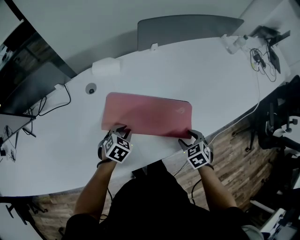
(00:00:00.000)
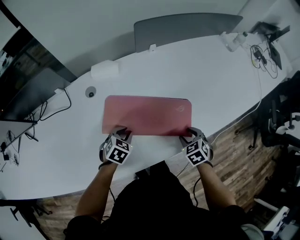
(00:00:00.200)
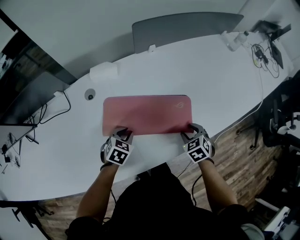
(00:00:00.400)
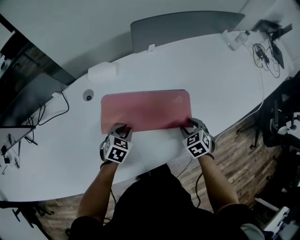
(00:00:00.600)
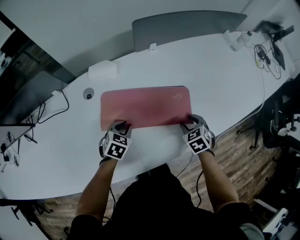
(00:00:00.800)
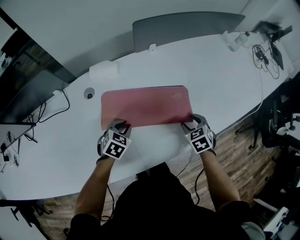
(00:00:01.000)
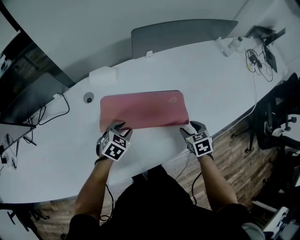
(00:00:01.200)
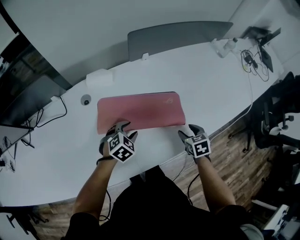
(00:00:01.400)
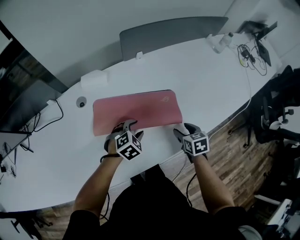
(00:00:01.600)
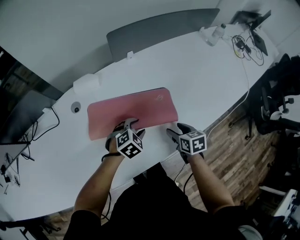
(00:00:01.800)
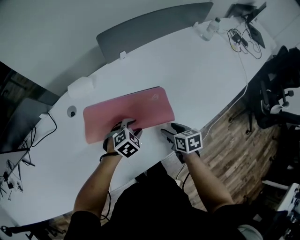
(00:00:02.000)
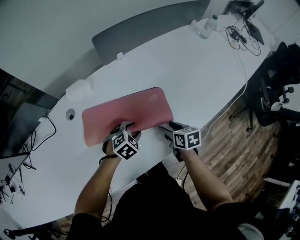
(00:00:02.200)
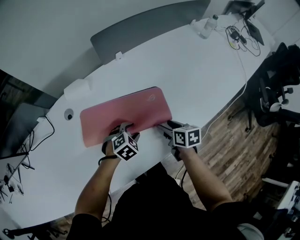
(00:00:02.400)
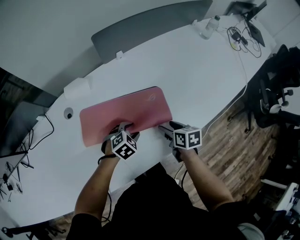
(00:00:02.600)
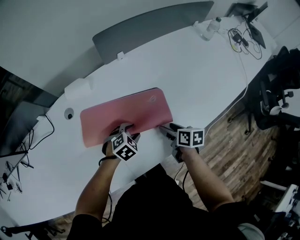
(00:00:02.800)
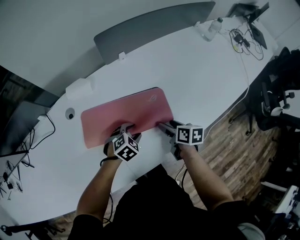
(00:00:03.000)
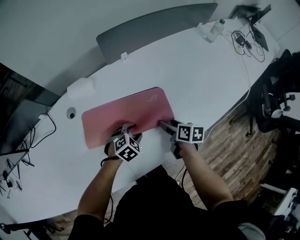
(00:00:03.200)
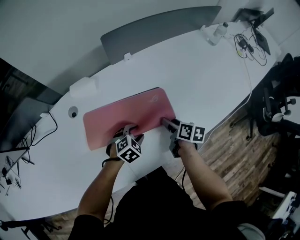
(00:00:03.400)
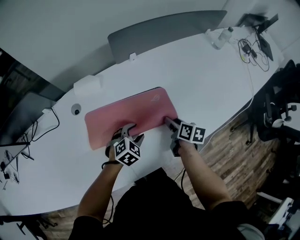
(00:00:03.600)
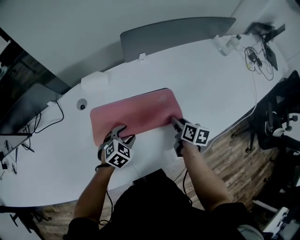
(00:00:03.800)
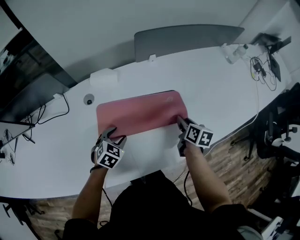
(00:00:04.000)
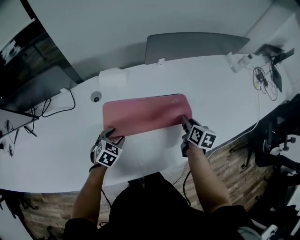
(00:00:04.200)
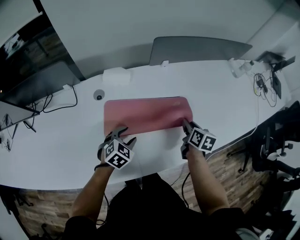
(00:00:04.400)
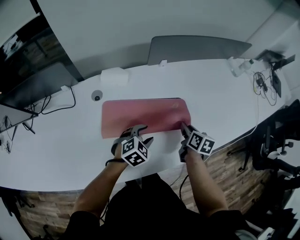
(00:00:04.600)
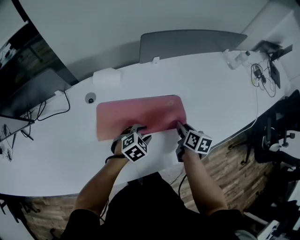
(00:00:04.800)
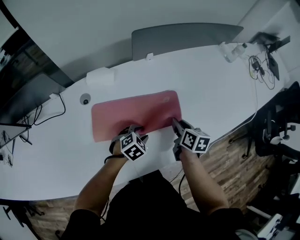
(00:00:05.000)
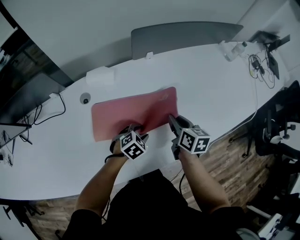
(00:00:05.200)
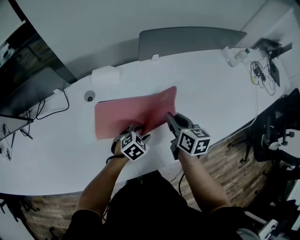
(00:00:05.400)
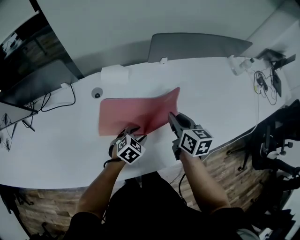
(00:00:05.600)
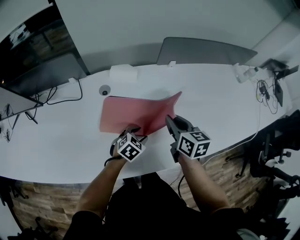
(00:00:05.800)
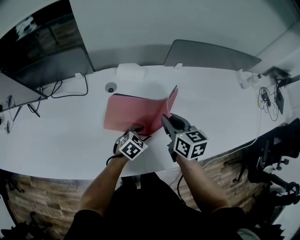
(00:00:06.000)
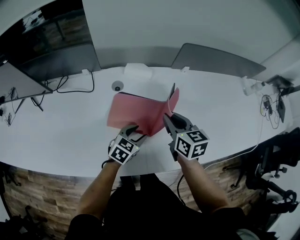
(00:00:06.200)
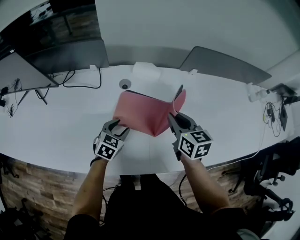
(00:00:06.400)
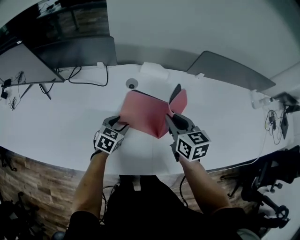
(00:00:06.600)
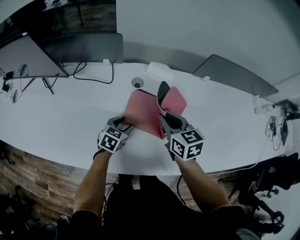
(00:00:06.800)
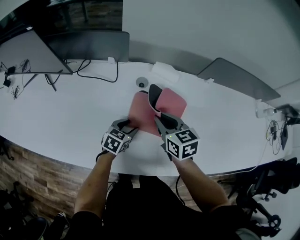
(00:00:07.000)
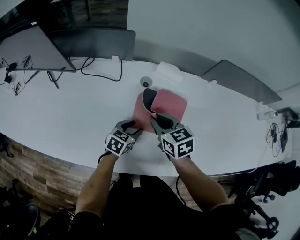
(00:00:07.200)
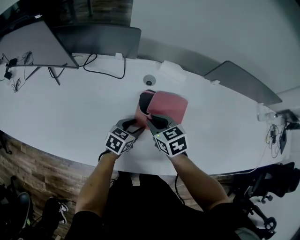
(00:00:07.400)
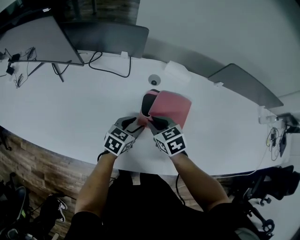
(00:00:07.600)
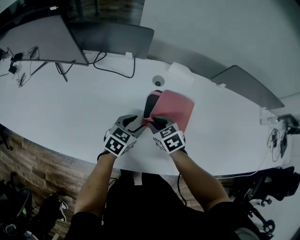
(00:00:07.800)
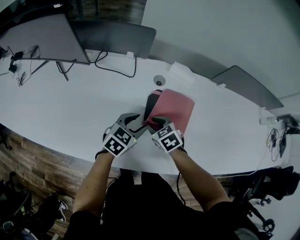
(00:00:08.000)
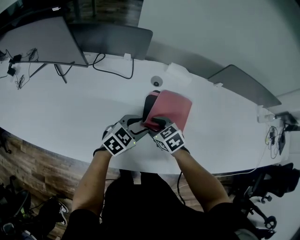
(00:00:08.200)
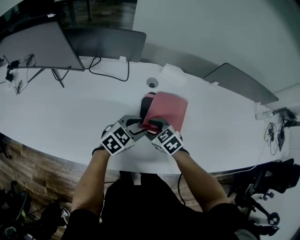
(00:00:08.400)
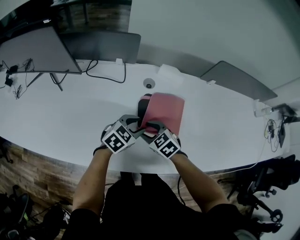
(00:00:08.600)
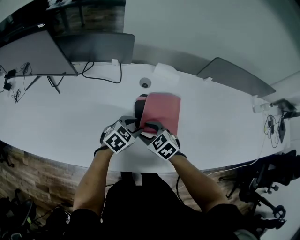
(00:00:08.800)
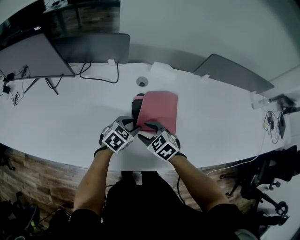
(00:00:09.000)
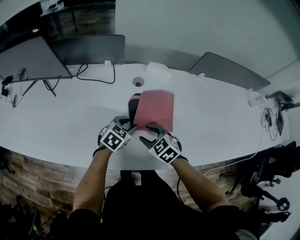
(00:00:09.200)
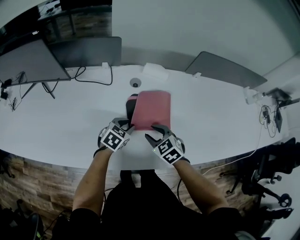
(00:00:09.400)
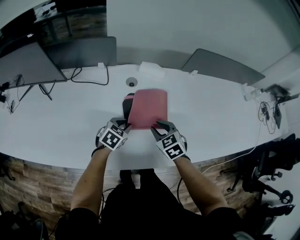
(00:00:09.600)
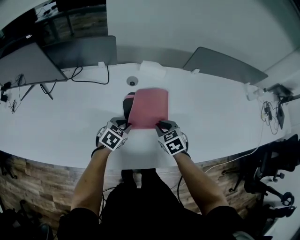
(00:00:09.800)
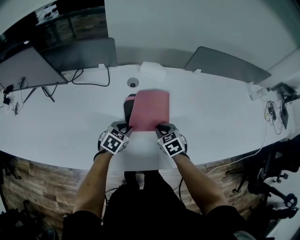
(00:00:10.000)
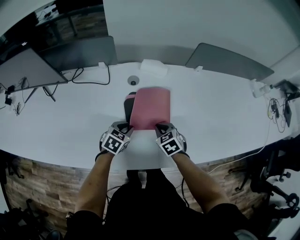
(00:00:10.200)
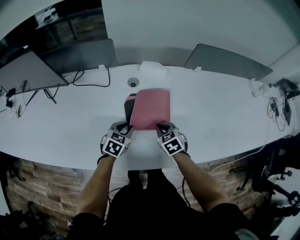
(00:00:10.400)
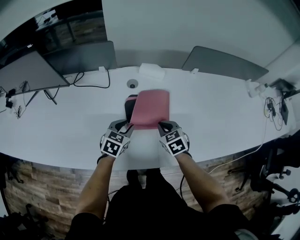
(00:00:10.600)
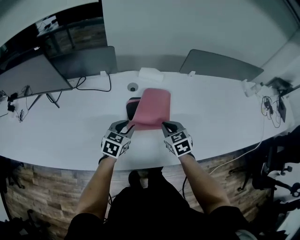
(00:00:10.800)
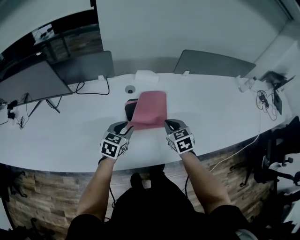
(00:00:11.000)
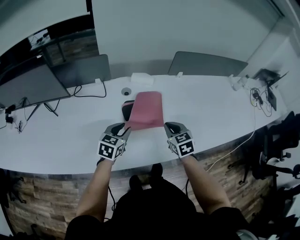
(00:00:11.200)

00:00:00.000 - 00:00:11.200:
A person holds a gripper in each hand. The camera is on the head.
00:00:00.000 - 00:00:01.600: The right gripper shifts some 5 cm forward, and turns by approximately 30 degrees, while the left gripper is displaced to the right and forward by roughly 10 cm, rotates some 20 degrees, and opens.
00:00:01.600 - 00:00:03.200: The left gripper ends up roughly 5 cm from where it was. The right gripper moves about 5 cm, and turns by roughly 40 degrees.
00:00:03.200 - 00:00:04.800: The right gripper closes up; the left gripper reaches some 20 cm to the left, then returns.
00:00:04.800 - 00:00:06.400: The left gripper shifts by some 25 cm, and swivels some 40 degrees. The right gripper ends up roughly 25 cm from where it was, and changes its angle by some 40 degrees.
00:00:06.400 - 00:00:08.000: The right gripper shifts about 25 cm to the left and downward, and rotates roughly 50 degrees; the left gripper is displaced to the left by roughly 5 cm.
00:00:08.000 - 00:00:09.600: The left gripper ends up about 5 cm from where it was, and closes. The right gripper is displaced to the right by roughly 10 cm.
00:00:09.600 - 00:00:11.200: The right gripper goes about 10 cm upward and to the right, swivels approximately 20 degrees, and closes its fingers; the left gripper goes approximately 10 cm upward.

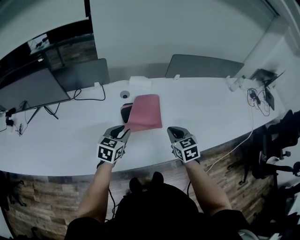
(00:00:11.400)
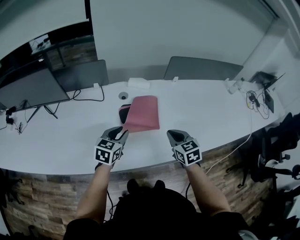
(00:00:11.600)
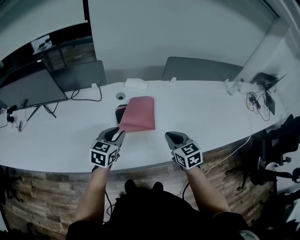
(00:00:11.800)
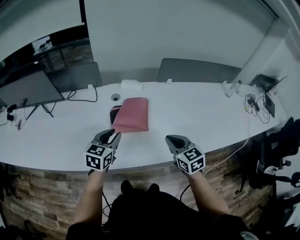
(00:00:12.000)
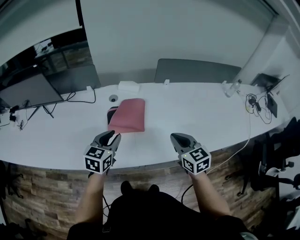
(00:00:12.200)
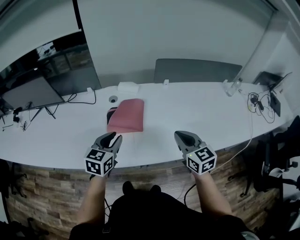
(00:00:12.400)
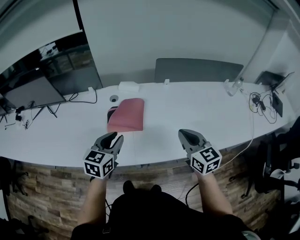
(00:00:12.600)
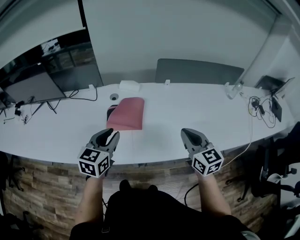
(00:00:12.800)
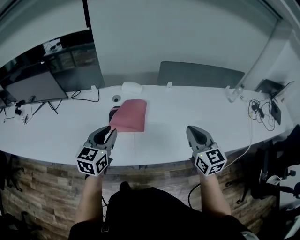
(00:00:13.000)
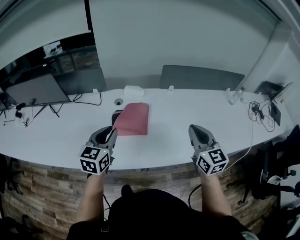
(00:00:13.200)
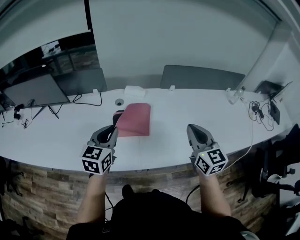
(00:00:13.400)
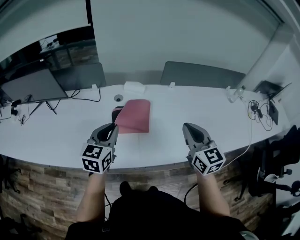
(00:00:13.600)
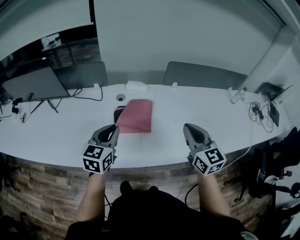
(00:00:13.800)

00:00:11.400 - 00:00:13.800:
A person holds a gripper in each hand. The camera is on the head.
00:00:11.400 - 00:00:12.600: The right gripper heads to the right and upward, covering approximately 20 cm, and swivels about 20 degrees. Meanwhile the left gripper shifts about 20 cm to the right, upward and backward.
00:00:12.600 - 00:00:13.800: Both grippers move to the left, approximately 5 cm.

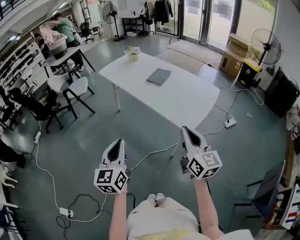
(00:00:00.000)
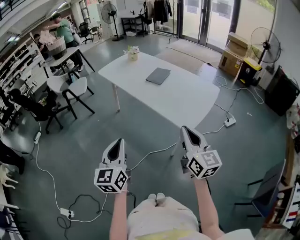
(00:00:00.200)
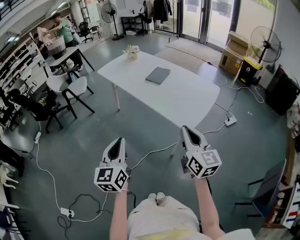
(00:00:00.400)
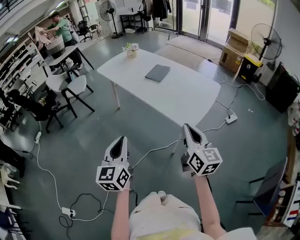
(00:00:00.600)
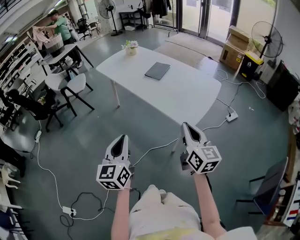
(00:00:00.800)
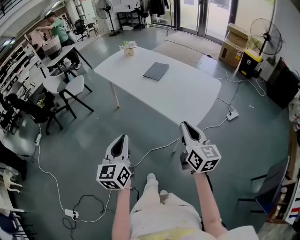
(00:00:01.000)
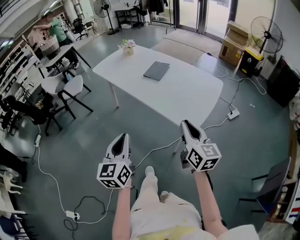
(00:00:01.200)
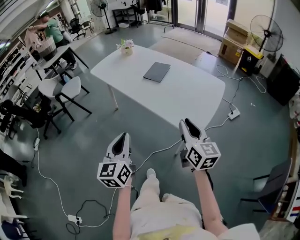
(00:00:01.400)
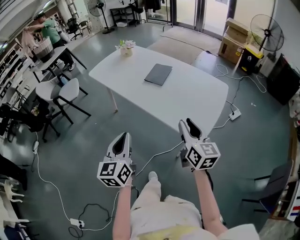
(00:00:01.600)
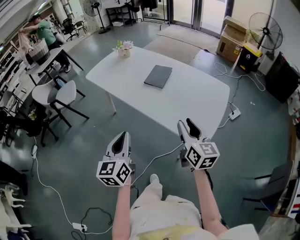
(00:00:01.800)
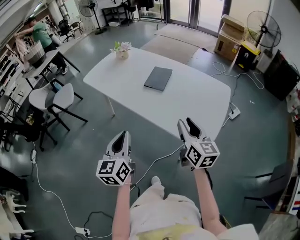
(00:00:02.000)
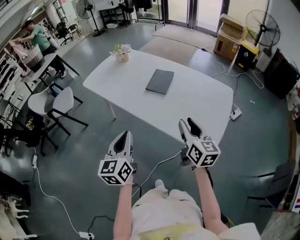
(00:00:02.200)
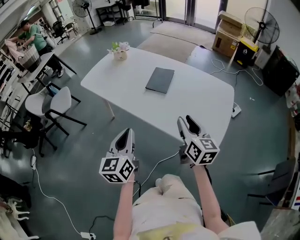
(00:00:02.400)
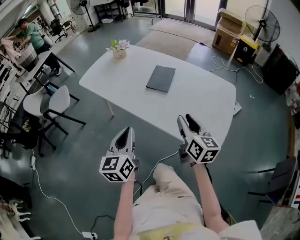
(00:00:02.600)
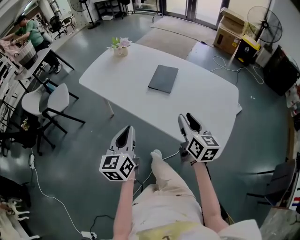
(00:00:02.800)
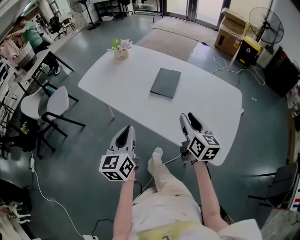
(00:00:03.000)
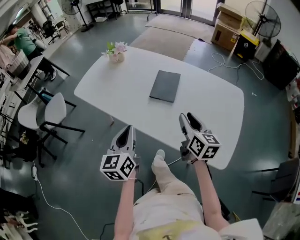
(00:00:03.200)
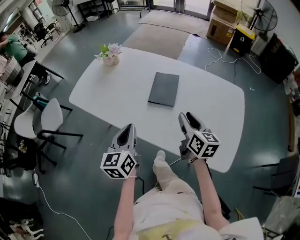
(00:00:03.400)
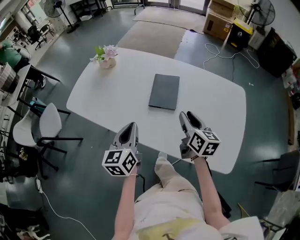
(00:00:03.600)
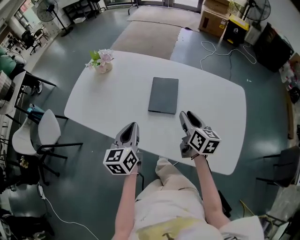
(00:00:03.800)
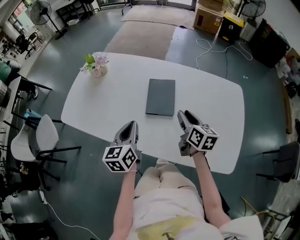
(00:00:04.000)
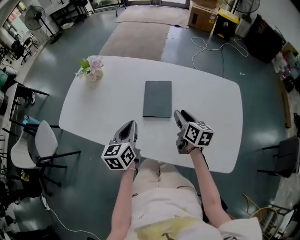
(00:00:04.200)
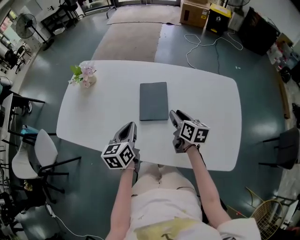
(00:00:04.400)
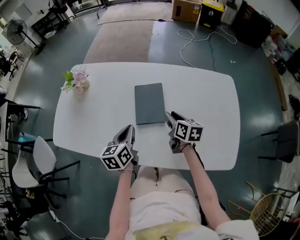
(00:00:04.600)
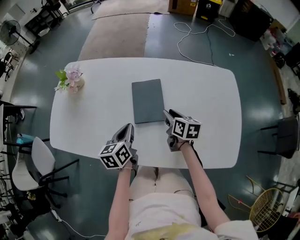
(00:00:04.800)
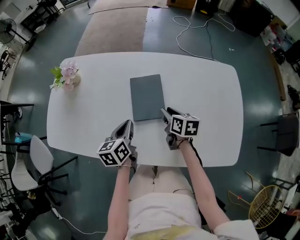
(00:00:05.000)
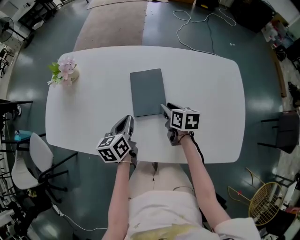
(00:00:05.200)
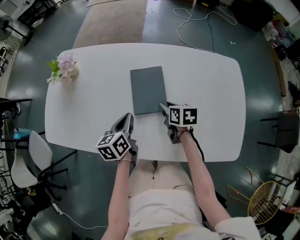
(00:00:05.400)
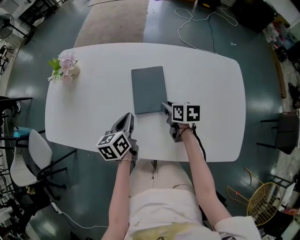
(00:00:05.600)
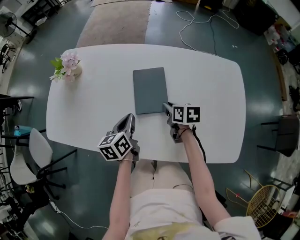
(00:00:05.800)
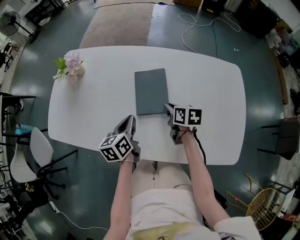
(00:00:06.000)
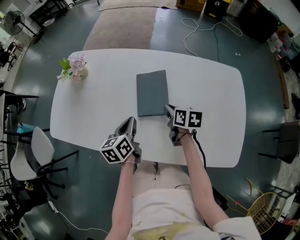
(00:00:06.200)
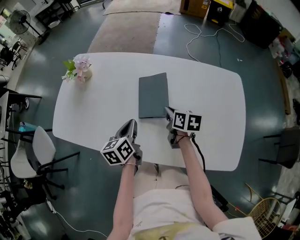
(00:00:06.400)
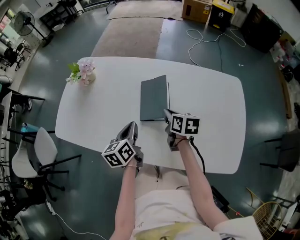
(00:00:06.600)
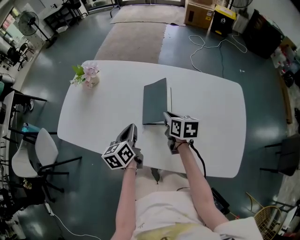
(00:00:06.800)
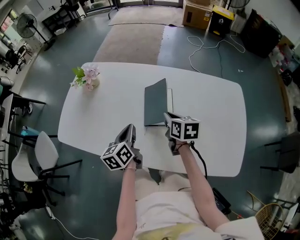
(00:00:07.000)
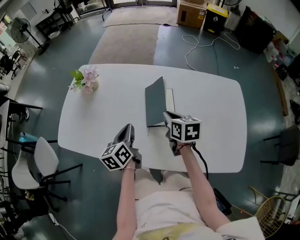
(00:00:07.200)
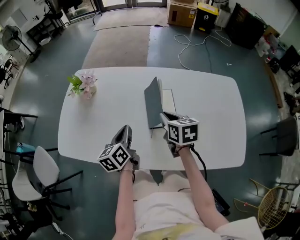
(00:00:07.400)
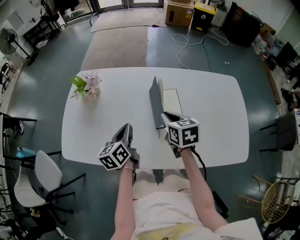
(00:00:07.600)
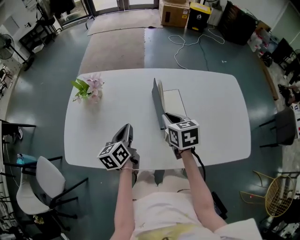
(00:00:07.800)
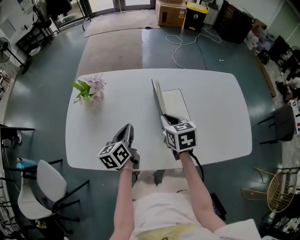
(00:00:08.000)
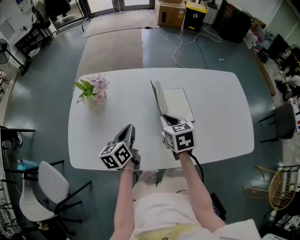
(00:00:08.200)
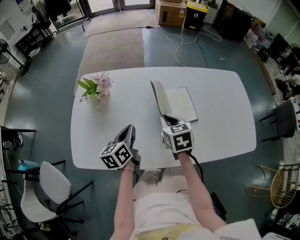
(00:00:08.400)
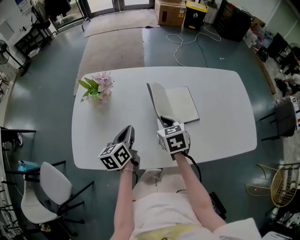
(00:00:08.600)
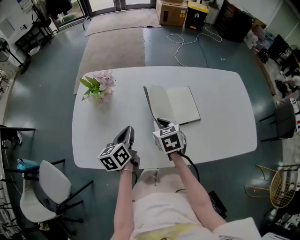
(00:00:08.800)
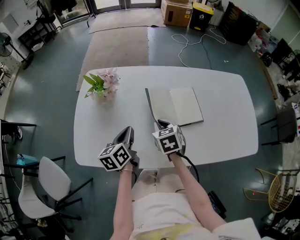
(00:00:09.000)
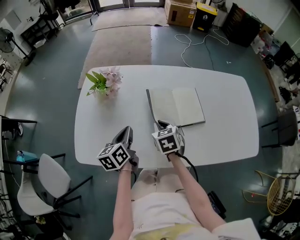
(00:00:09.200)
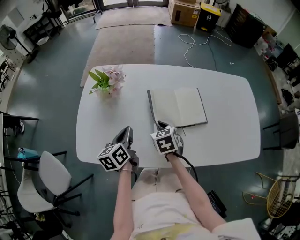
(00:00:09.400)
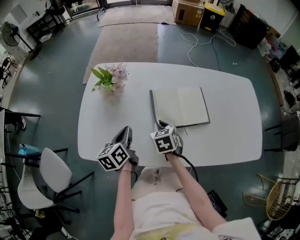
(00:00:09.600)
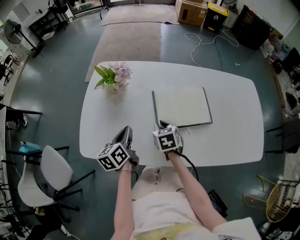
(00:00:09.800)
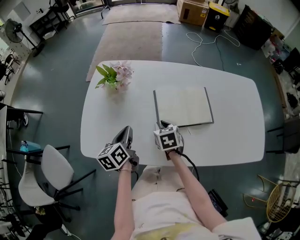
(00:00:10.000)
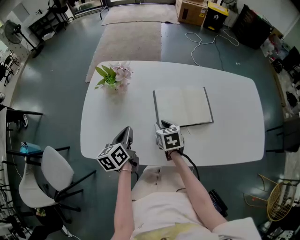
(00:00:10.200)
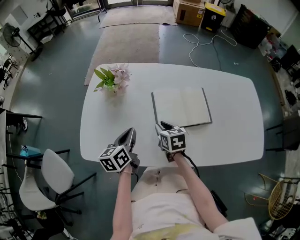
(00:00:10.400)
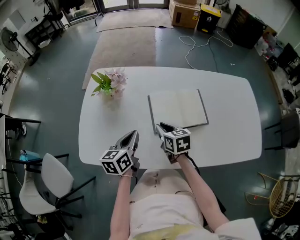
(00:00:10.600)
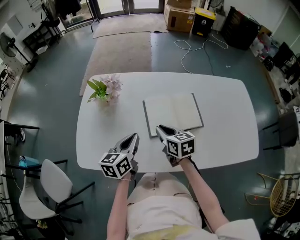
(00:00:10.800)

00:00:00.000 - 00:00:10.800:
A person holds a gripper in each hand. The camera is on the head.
00:00:00.000 - 00:00:01.600: The grippers both shift forward by approximately 20 cm. The right gripper opens.
00:00:01.600 - 00:00:03.000: Both grippers travel together forward, roughly 25 cm.
00:00:03.000 - 00:00:04.600: Both grippers travel together forward and downward, some 30 cm. The right gripper turns by about 30 degrees. Meanwhile the left gripper swivels approximately 30 degrees.
00:00:04.600 - 00:00:06.200: The right gripper closes up.
00:00:06.200 - 00:00:07.800: The right gripper shifts about 15 cm to the left and upward, and changes its angle by roughly 20 degrees. Meanwhile the left gripper goes some 15 cm to the left and forward.
00:00:07.800 - 00:00:09.200: The left gripper travels to the left by some 10 cm. The right gripper travels to the left and downward by roughly 15 cm.
00:00:09.200 - 00:00:10.800: The right gripper swivels some 30 degrees; the left gripper changes place by approximately 5 cm.
